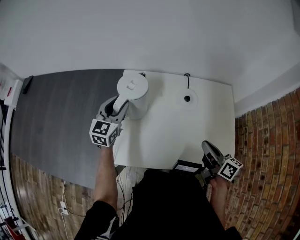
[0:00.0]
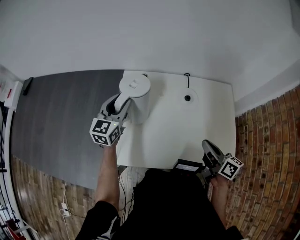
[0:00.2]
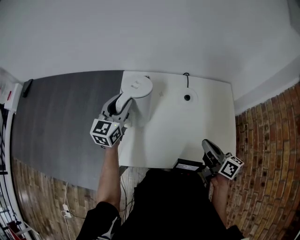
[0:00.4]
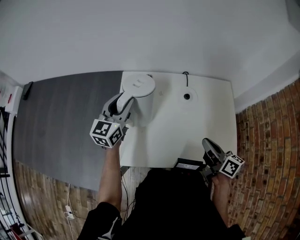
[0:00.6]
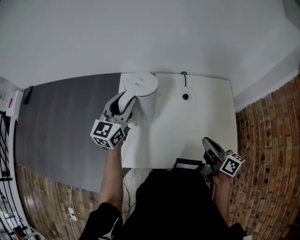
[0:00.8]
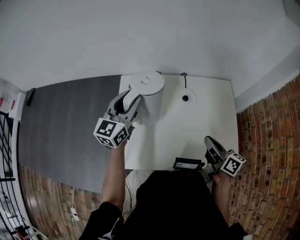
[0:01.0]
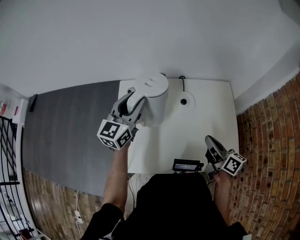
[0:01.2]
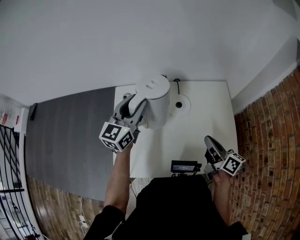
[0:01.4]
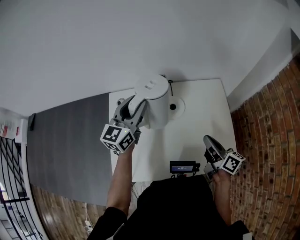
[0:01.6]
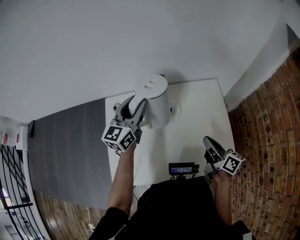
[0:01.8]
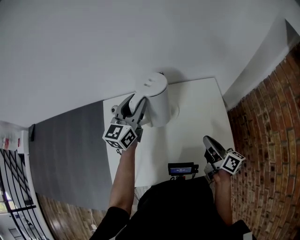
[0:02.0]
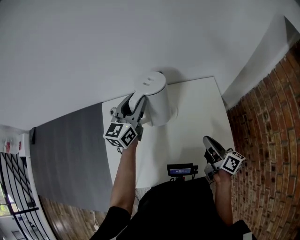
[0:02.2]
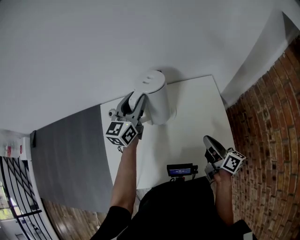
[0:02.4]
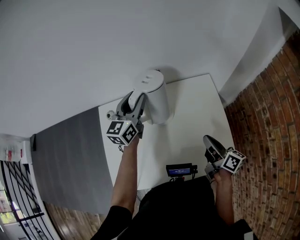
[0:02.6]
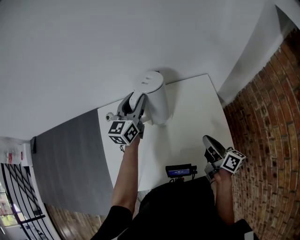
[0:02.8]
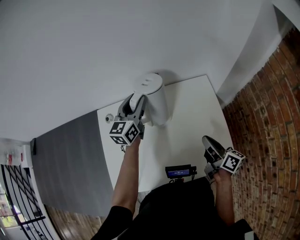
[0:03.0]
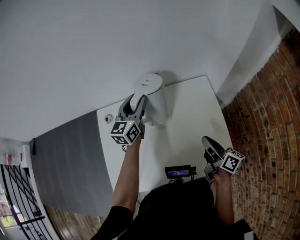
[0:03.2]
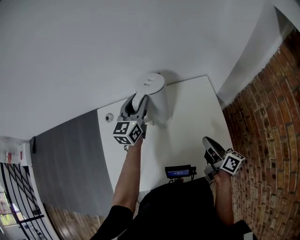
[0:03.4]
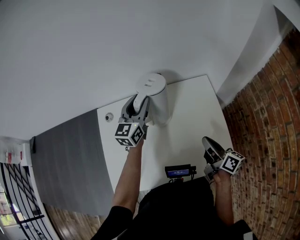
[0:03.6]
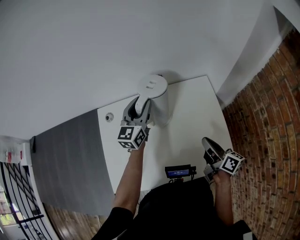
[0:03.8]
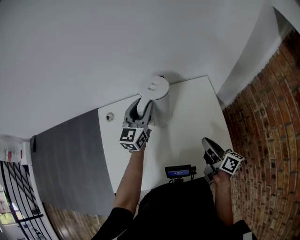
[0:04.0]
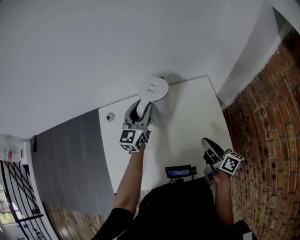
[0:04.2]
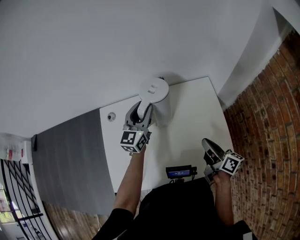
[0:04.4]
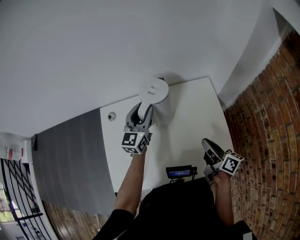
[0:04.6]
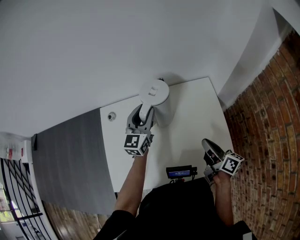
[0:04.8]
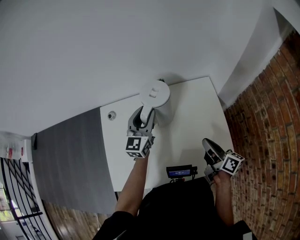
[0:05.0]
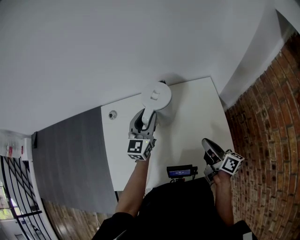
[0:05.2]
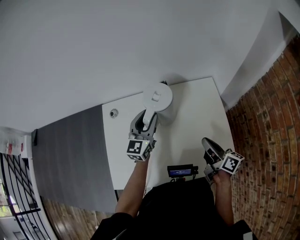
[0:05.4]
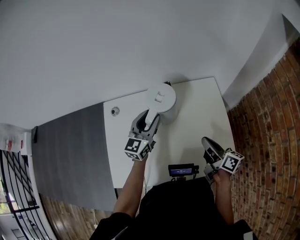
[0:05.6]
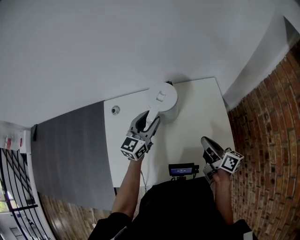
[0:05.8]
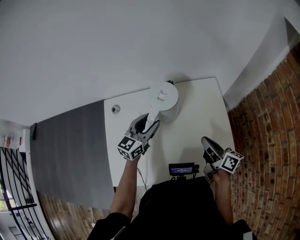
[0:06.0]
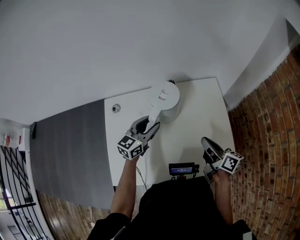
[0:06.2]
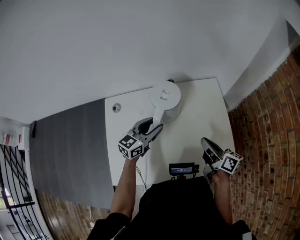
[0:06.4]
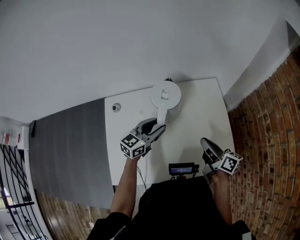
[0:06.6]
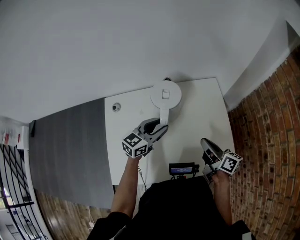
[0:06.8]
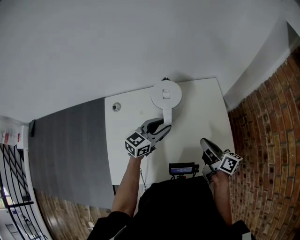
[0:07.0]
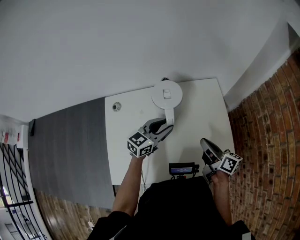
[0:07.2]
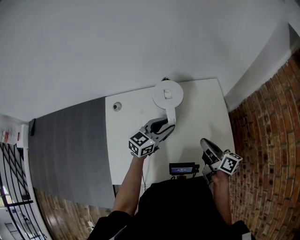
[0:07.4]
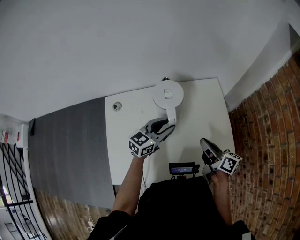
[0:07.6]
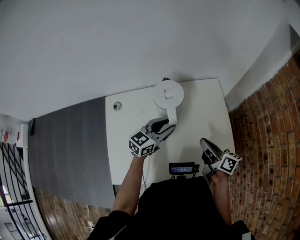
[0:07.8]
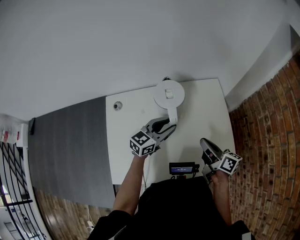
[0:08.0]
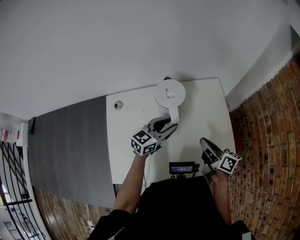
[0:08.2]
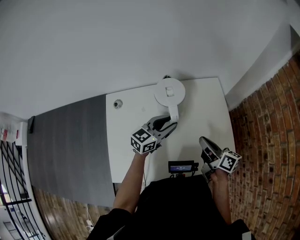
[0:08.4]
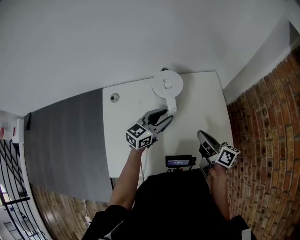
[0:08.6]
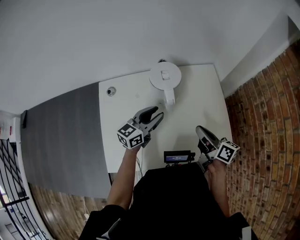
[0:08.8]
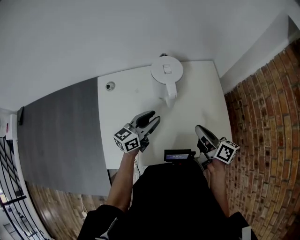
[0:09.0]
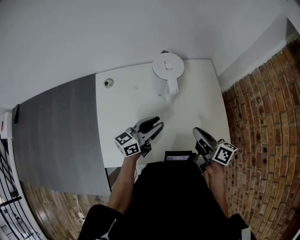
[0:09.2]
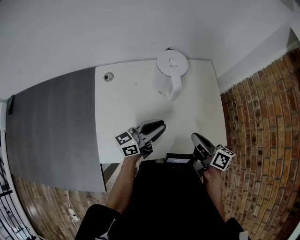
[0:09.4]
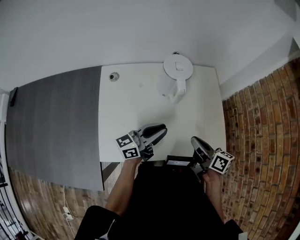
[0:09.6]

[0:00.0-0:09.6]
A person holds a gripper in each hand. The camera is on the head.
0:00.0 to 0:01.6: The right gripper heads to the right, covering approximately 10 cm. The left gripper travels to the right and upward by some 20 cm.
0:01.6 to 0:03.2: The right gripper moves to the right, some 5 cm; the left gripper goes roughly 10 cm forward and to the right.
0:03.2 to 0:04.8: The left gripper shifts some 5 cm backward.
0:04.8 to 0:06.4: The left gripper shifts some 10 cm backward and downward, and swivels about 30 degrees.
0:06.4 to 0:08.0: The left gripper heads to the right, covering roughly 5 cm.
0:08.0 to 0:09.6: Both grippers move backward, about 10 cm. The left gripper turns by some 30 degrees.

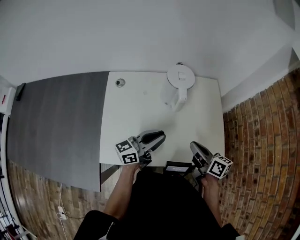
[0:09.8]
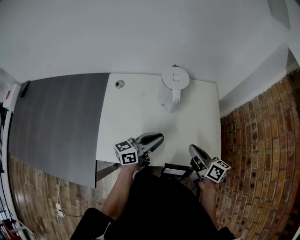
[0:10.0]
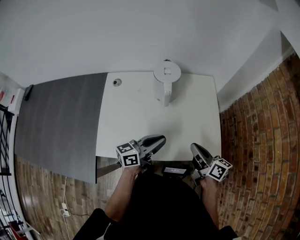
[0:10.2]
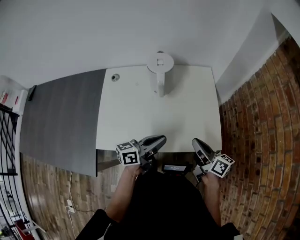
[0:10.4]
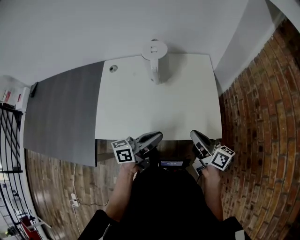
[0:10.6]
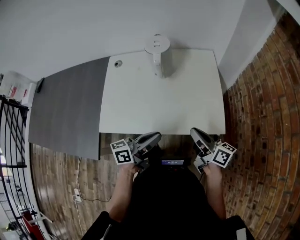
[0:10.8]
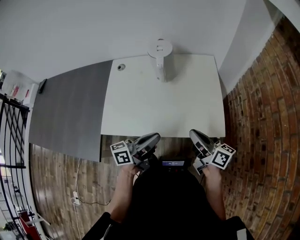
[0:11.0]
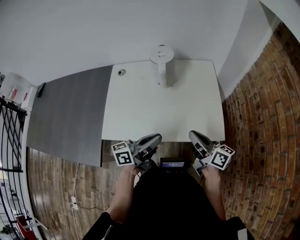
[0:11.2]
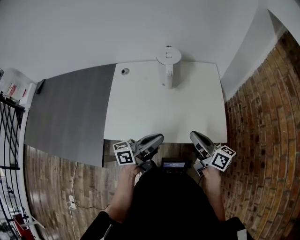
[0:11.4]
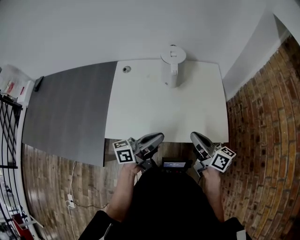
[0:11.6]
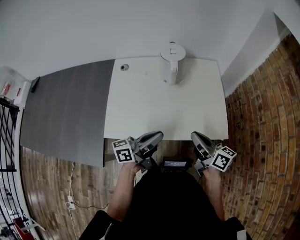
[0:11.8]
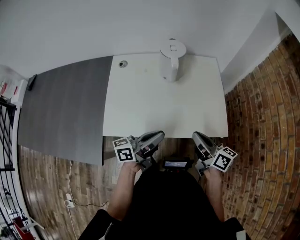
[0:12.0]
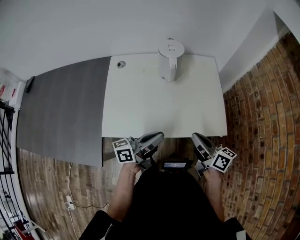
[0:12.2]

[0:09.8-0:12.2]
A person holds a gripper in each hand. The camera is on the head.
0:09.8 to 0:11.0: Both grippers travel together backward and to the right, some 15 cm.
0:11.0 to 0:12.2: The grippers both shift to the left by roughly 5 cm.

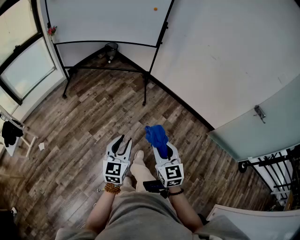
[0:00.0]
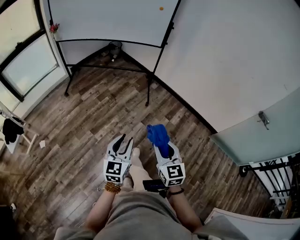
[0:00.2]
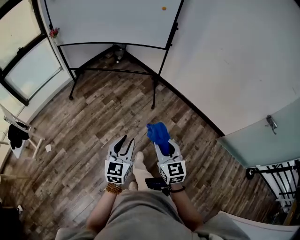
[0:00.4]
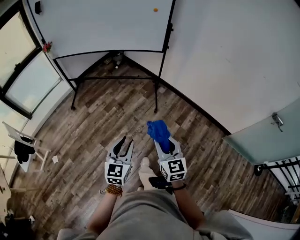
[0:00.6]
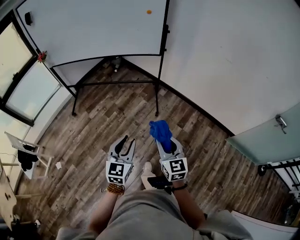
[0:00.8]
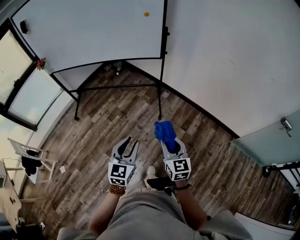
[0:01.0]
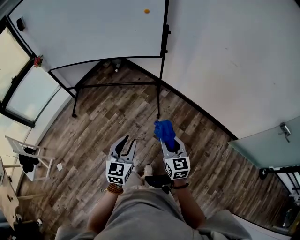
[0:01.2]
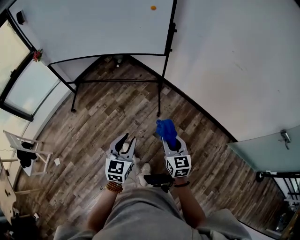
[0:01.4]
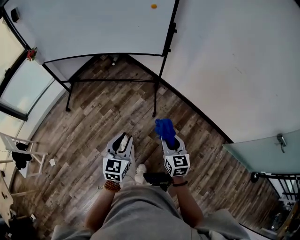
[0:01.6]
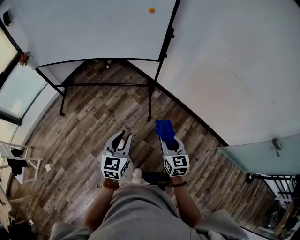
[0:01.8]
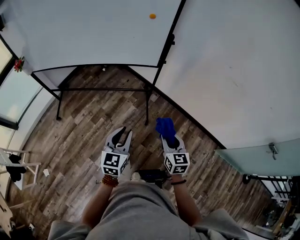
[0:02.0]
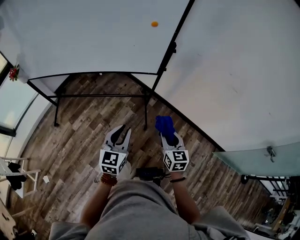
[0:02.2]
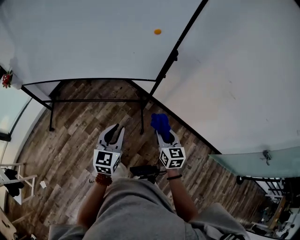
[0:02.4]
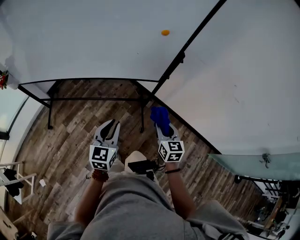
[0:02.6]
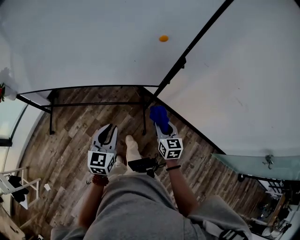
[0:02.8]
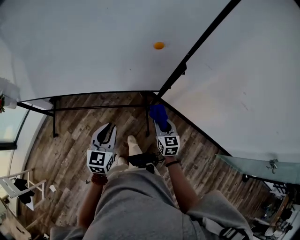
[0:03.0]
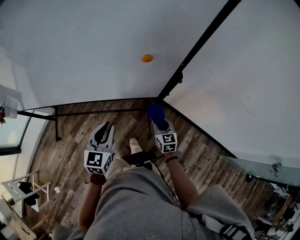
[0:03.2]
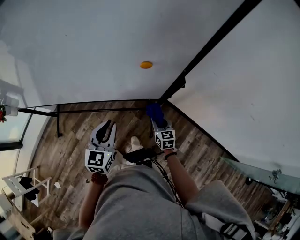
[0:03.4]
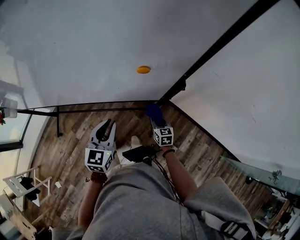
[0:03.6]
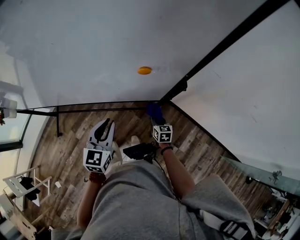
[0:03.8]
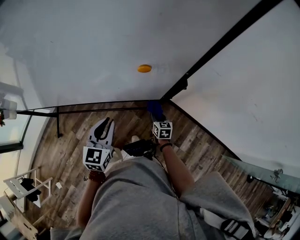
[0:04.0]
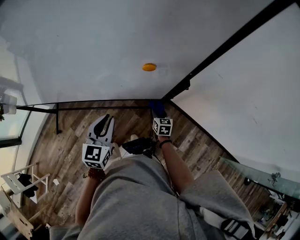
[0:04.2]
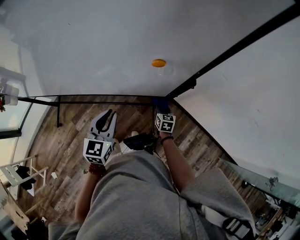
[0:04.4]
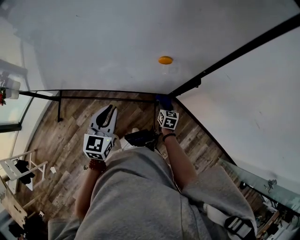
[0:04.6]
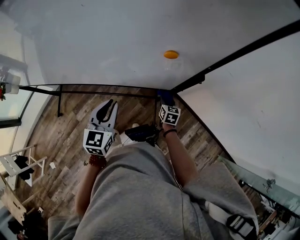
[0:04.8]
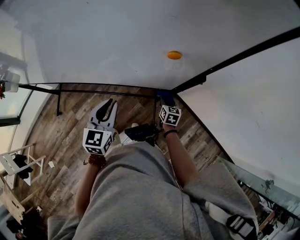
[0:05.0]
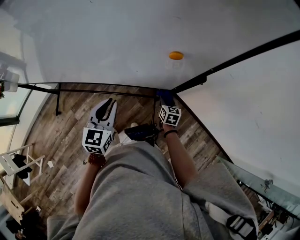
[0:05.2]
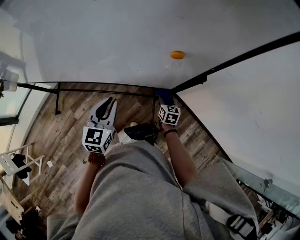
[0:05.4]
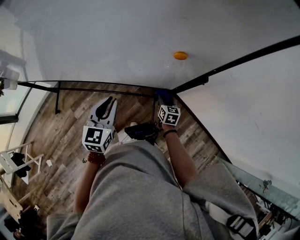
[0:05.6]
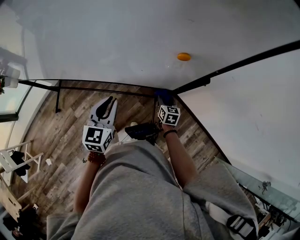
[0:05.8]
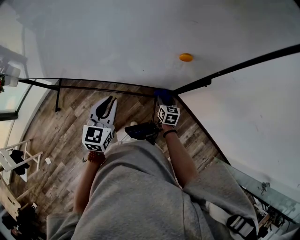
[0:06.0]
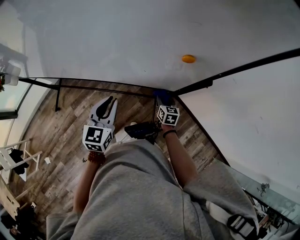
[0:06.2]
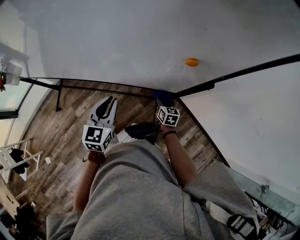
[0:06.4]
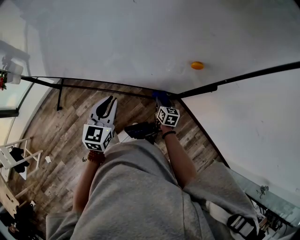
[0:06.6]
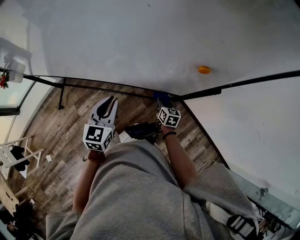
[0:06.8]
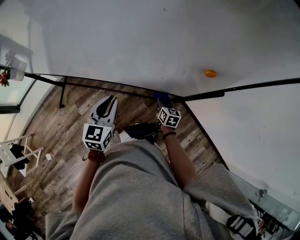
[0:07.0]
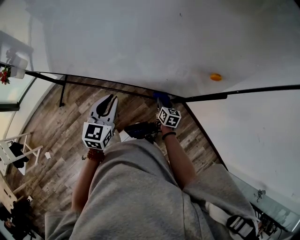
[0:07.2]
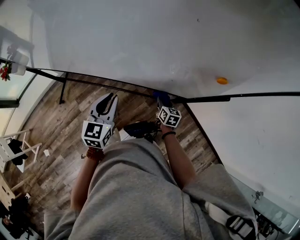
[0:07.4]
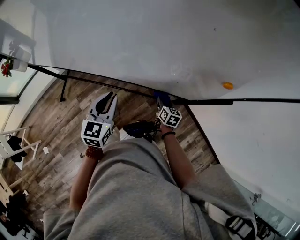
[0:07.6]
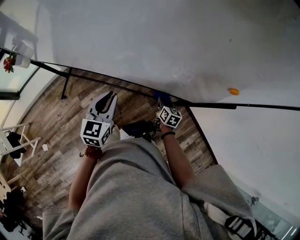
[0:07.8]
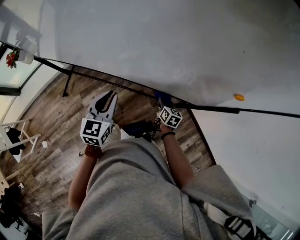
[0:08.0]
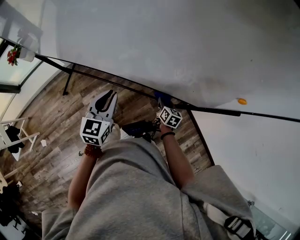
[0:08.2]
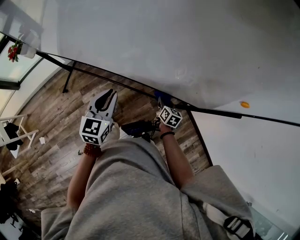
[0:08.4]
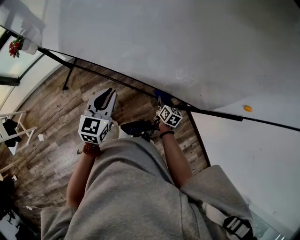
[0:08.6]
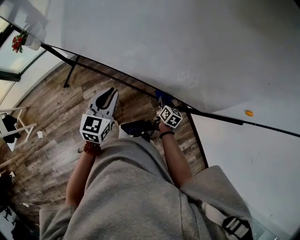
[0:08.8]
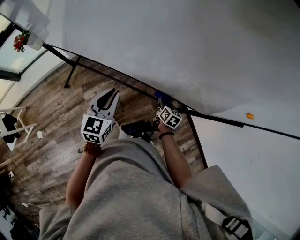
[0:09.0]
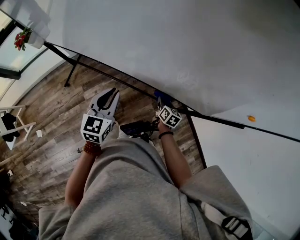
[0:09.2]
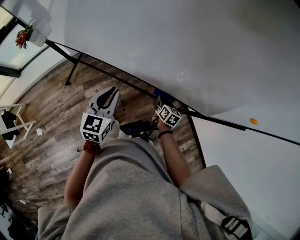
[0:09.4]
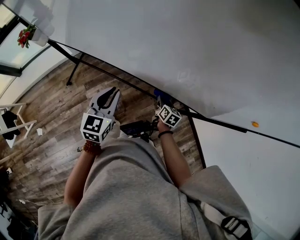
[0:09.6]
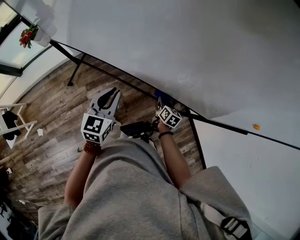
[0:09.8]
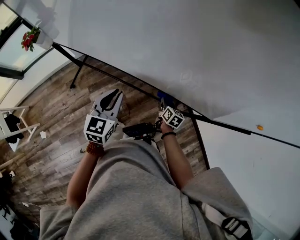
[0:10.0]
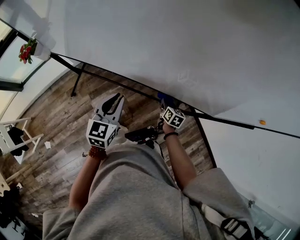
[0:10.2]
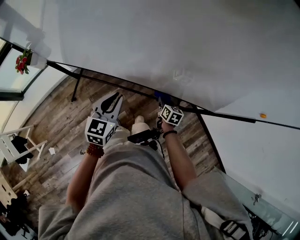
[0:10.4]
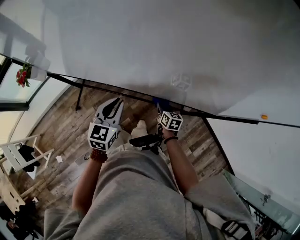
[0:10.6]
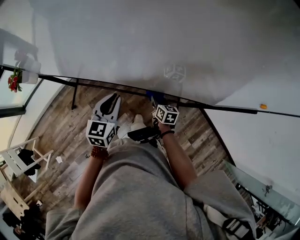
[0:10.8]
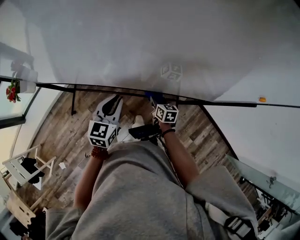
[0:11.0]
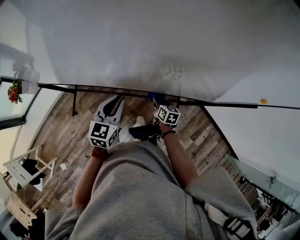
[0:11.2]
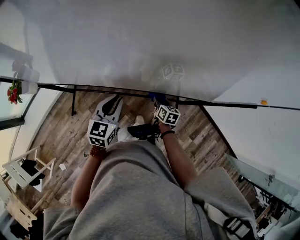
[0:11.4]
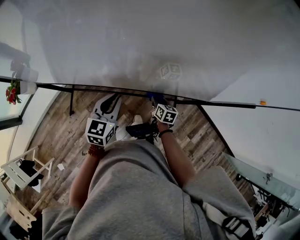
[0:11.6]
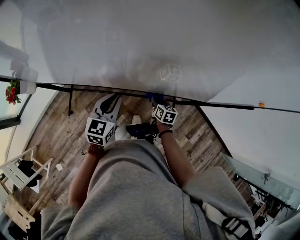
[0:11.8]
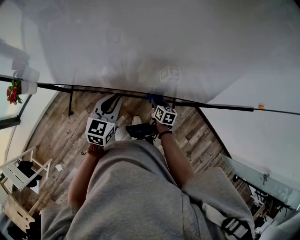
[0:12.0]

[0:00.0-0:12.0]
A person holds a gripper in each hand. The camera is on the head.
0:00.0 to 0:01.6: Both grippers move forward, approximately 40 cm.
0:01.6 to 0:03.0: The pair of grippers is taken forward, some 40 cm.
0:03.0 to 0:04.4: The left gripper shifts some 10 cm forward. The right gripper moves downward and forward, approximately 20 cm.
0:04.4 to 0:06.0: The grippers make only small movements.
0:06.0 to 0:07.6: The grippers both shift to the left by about 10 cm.
0:07.6 to 0:09.0: Both grippers travel together to the left, approximately 10 cm.
0:09.0 to 0:10.4: Both grippers travel together to the left, some 10 cm.
